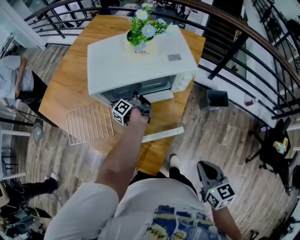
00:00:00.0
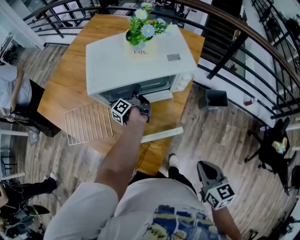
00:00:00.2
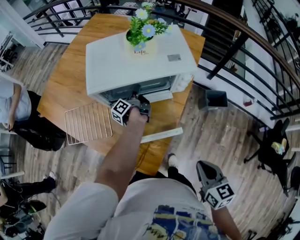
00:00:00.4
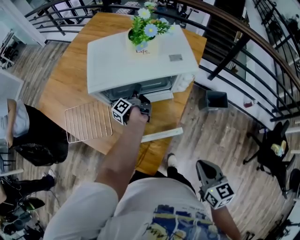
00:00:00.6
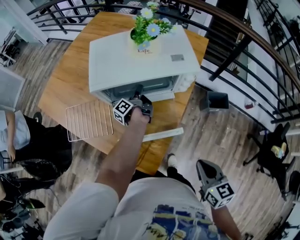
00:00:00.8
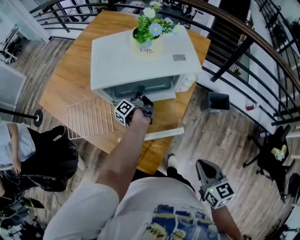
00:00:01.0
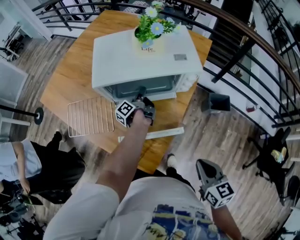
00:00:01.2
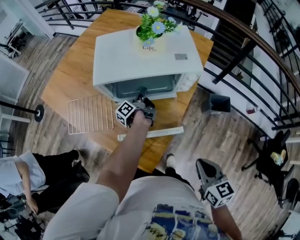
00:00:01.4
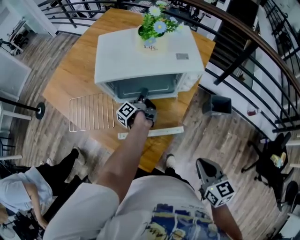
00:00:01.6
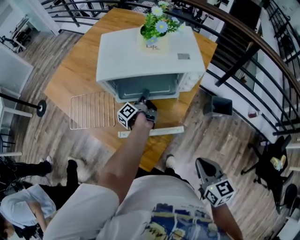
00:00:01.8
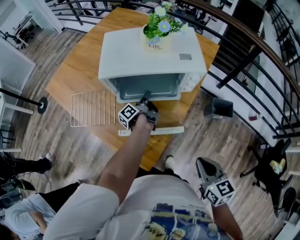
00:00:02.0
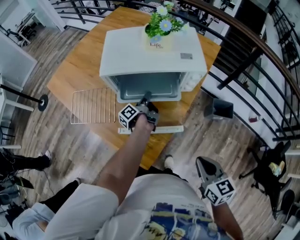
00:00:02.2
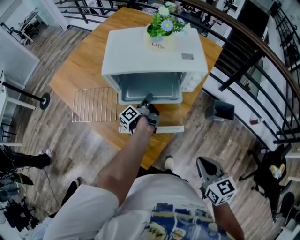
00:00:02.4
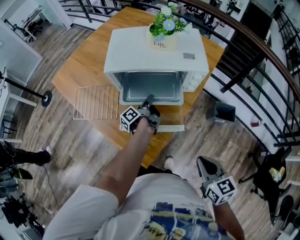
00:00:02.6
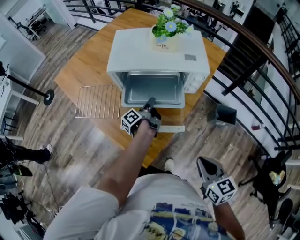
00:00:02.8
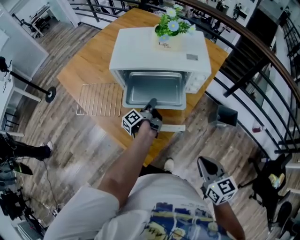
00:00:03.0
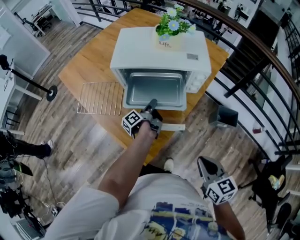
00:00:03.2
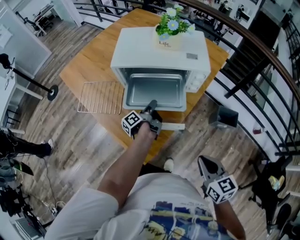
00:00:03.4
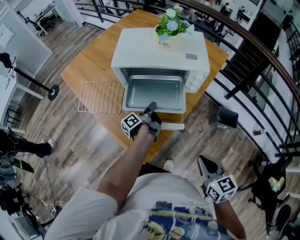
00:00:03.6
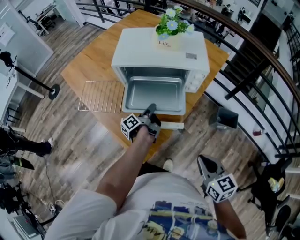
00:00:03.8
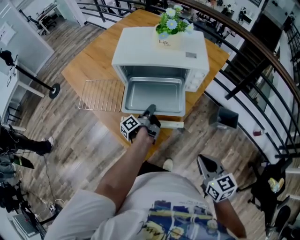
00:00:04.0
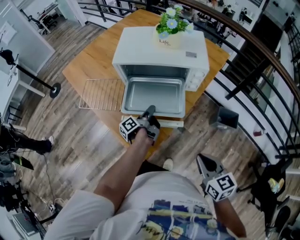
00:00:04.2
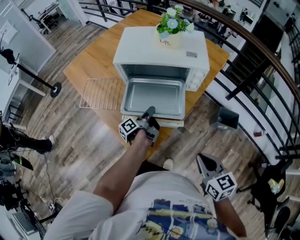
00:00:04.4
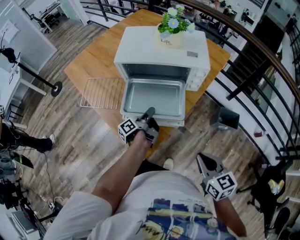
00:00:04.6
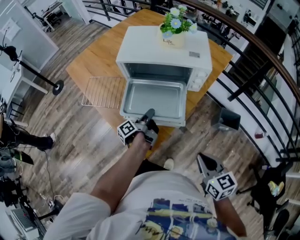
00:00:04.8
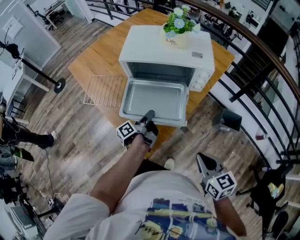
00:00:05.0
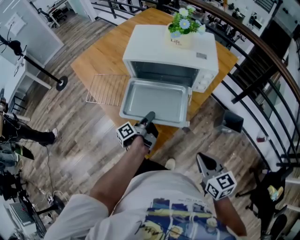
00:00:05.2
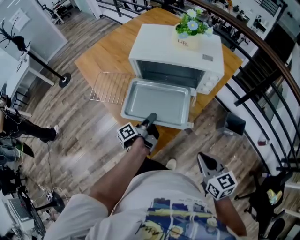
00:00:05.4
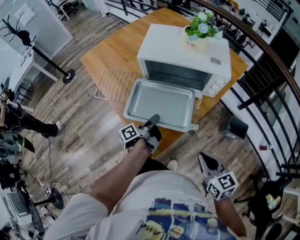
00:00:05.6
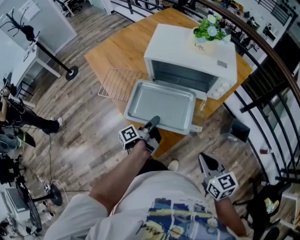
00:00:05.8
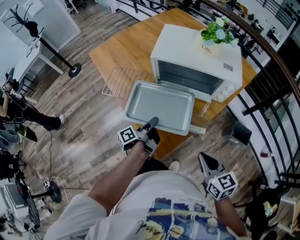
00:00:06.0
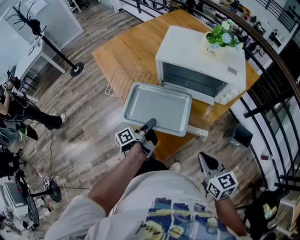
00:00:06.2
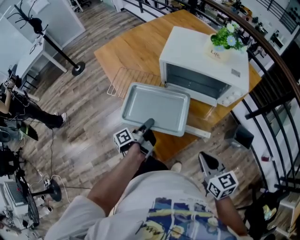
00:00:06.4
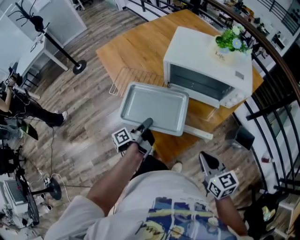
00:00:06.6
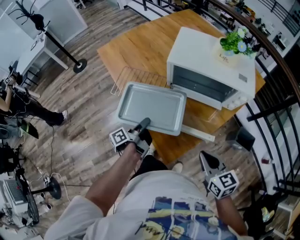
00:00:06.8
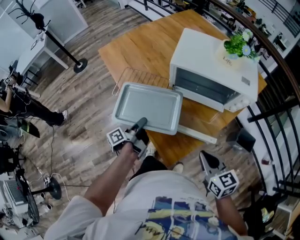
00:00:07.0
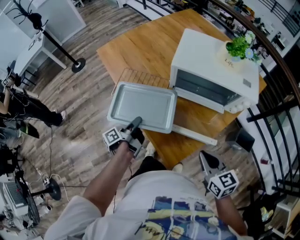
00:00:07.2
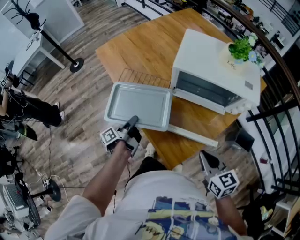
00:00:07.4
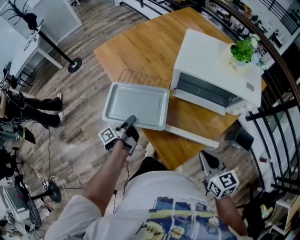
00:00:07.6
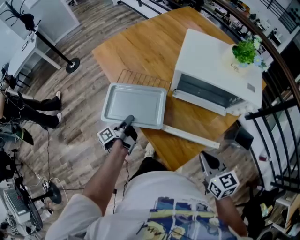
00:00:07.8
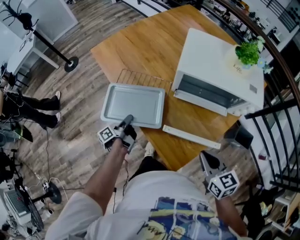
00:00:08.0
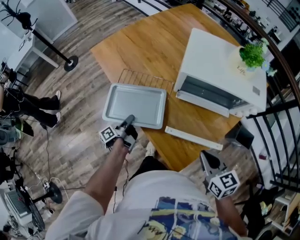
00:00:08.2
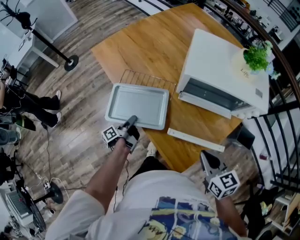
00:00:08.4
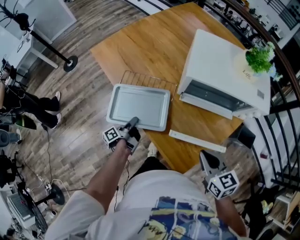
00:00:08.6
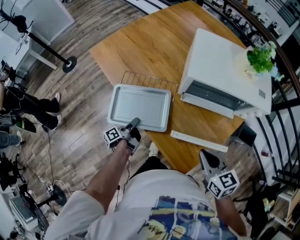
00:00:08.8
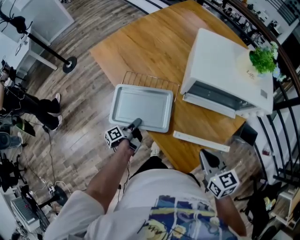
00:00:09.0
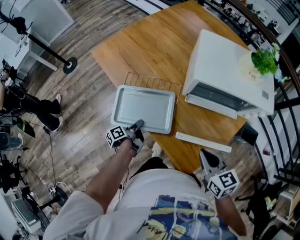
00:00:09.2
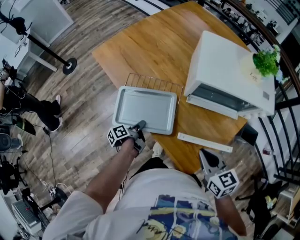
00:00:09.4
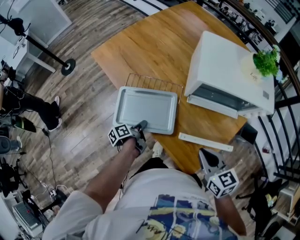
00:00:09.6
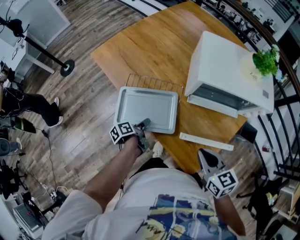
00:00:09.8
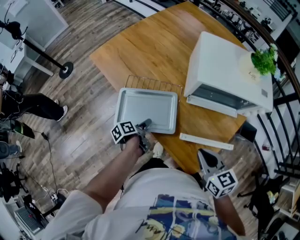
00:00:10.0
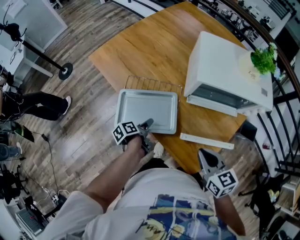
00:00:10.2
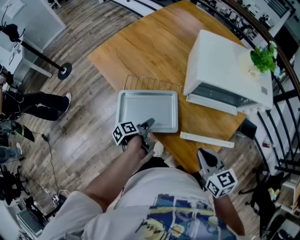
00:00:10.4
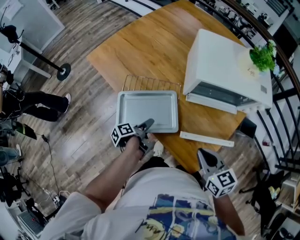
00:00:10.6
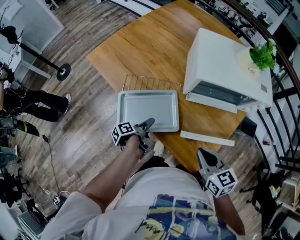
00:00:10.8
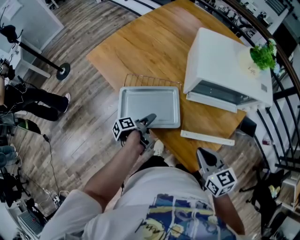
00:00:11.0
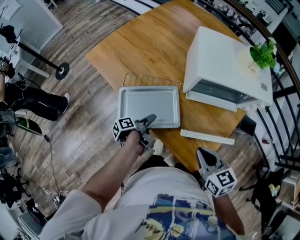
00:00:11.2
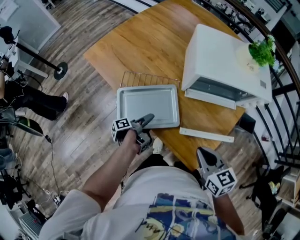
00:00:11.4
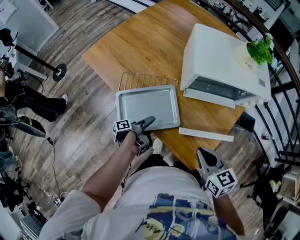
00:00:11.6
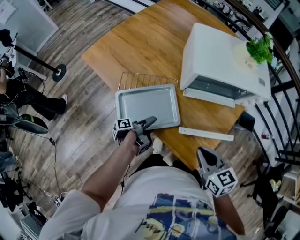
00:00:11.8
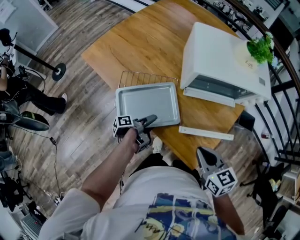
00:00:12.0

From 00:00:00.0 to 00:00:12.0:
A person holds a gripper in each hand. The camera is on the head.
From 00:00:04.4 to 00:00:06.0: The right gripper moves some 10 cm.
From 00:00:06.0 to 00:00:07.6: The right gripper ends up roughly 15 cm from where it was.
From 00:00:07.6 to 00:00:09.0: The right gripper shifts by about 10 cm.
From 00:00:09.0 to 00:00:10.4: The right gripper ends up some 5 cm from where it was.

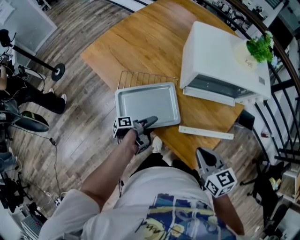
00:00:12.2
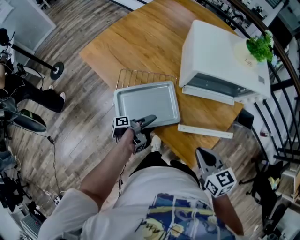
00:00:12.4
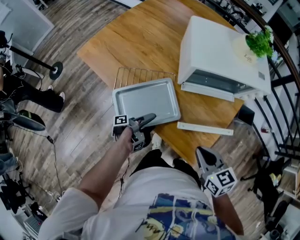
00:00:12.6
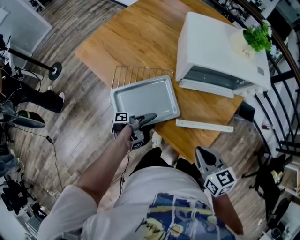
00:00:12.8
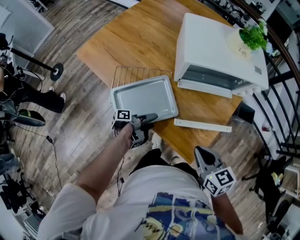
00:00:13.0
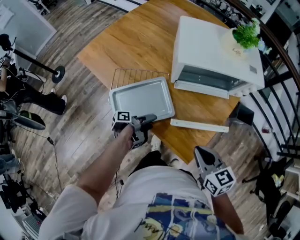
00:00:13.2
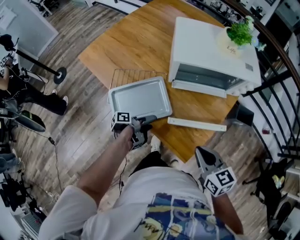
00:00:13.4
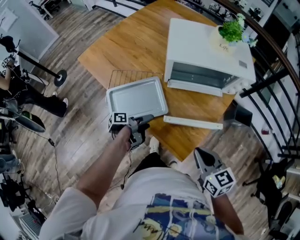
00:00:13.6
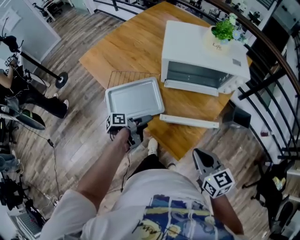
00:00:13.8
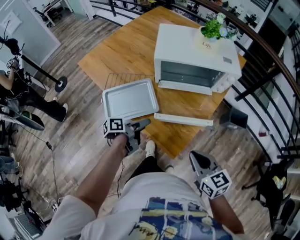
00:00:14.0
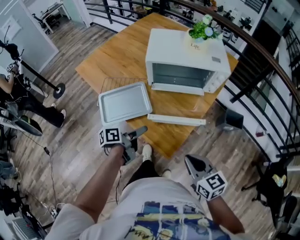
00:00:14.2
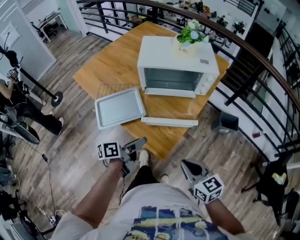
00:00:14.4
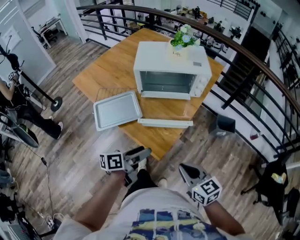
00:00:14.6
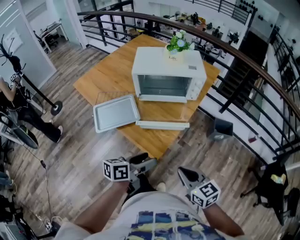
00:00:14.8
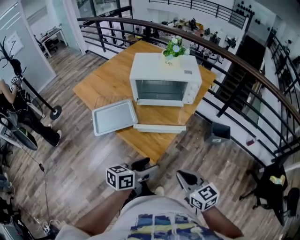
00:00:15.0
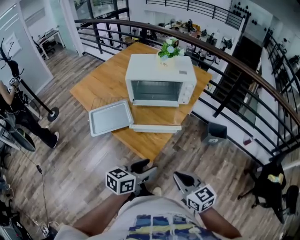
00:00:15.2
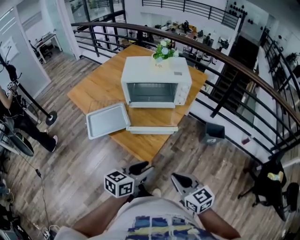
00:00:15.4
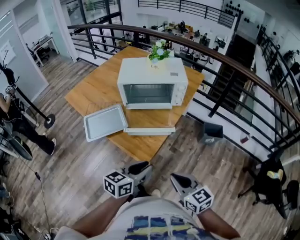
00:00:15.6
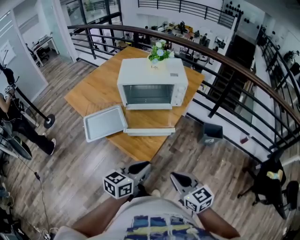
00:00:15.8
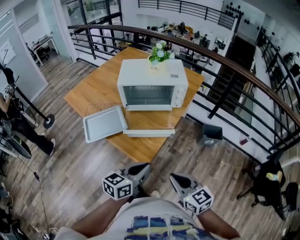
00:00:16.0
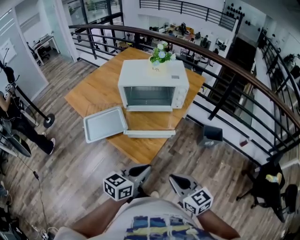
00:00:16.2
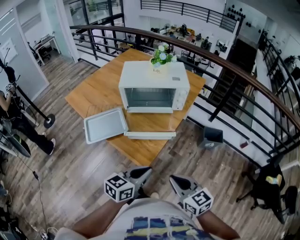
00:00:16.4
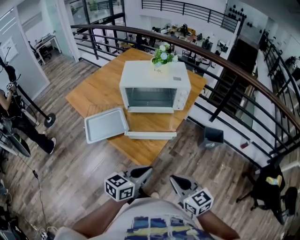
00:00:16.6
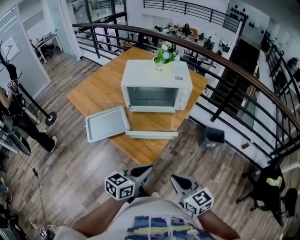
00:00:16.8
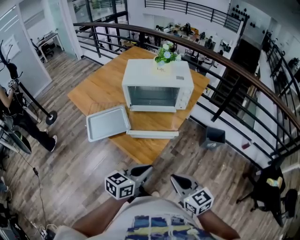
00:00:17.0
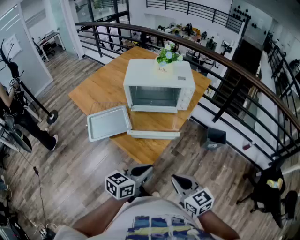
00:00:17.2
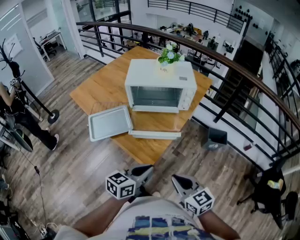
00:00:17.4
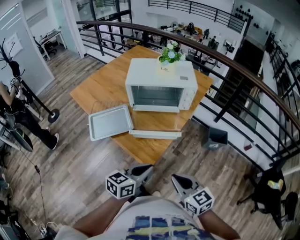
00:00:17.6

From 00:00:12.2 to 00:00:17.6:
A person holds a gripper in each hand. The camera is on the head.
From 00:00:12.2 to 00:00:13.6: The right gripper changes place by roughly 10 cm.
From 00:00:13.6 to 00:00:15.0: The right gripper shifts by approximately 20 cm.

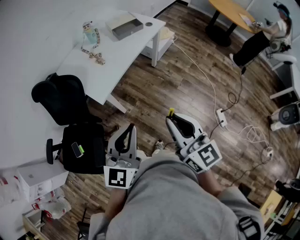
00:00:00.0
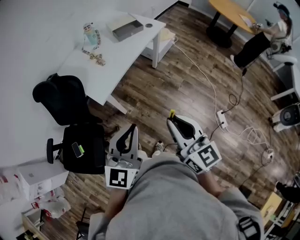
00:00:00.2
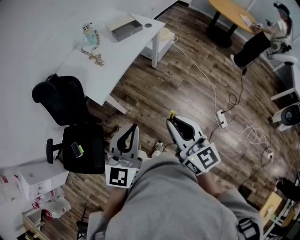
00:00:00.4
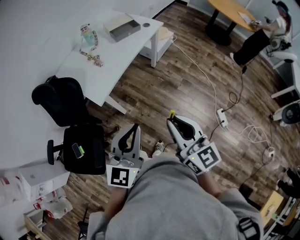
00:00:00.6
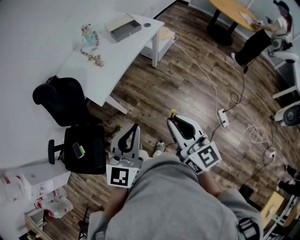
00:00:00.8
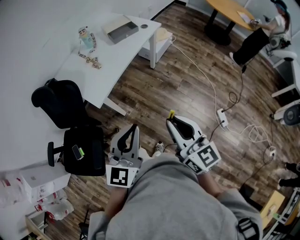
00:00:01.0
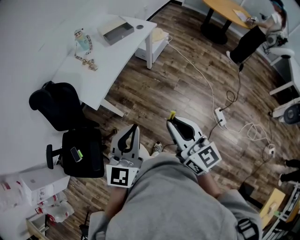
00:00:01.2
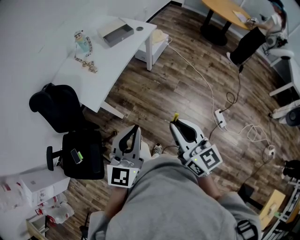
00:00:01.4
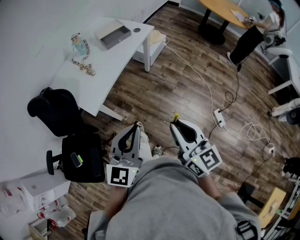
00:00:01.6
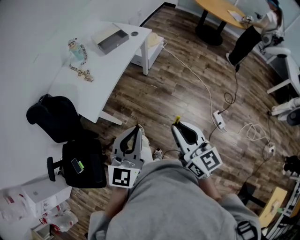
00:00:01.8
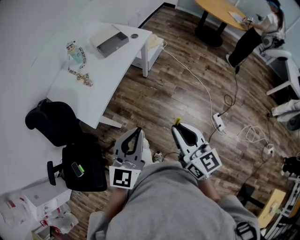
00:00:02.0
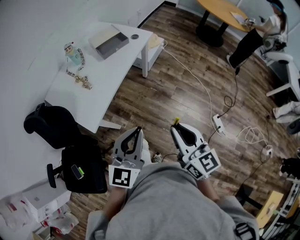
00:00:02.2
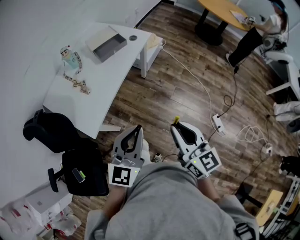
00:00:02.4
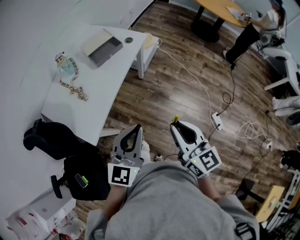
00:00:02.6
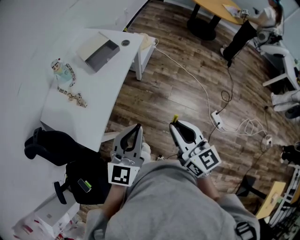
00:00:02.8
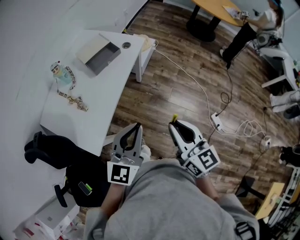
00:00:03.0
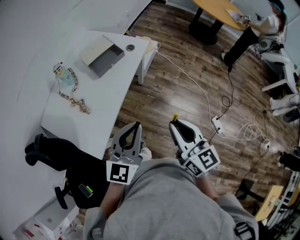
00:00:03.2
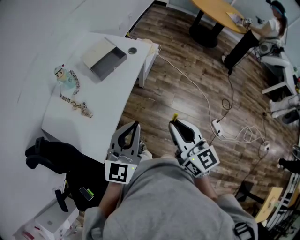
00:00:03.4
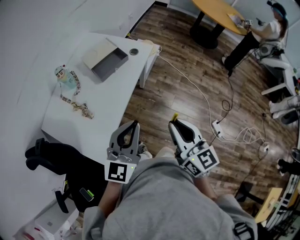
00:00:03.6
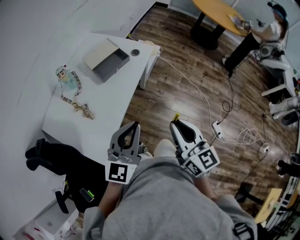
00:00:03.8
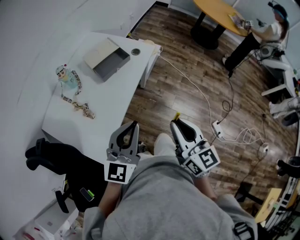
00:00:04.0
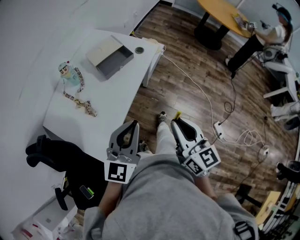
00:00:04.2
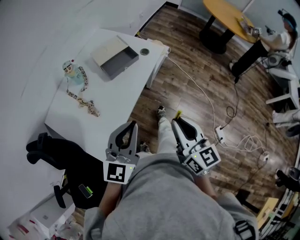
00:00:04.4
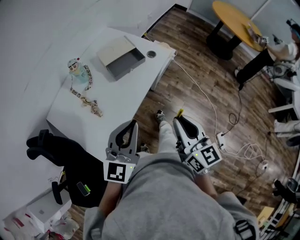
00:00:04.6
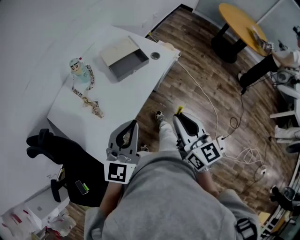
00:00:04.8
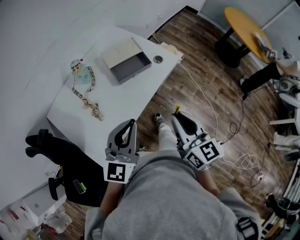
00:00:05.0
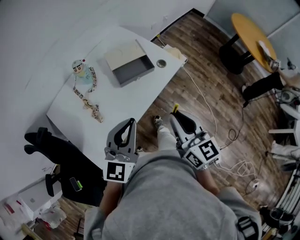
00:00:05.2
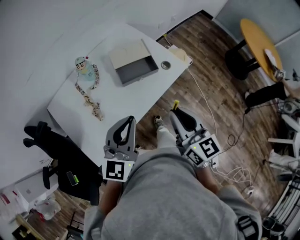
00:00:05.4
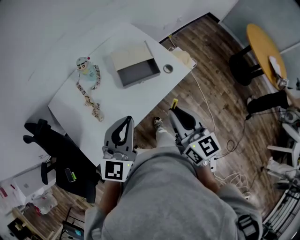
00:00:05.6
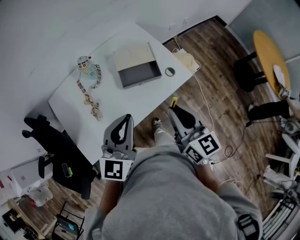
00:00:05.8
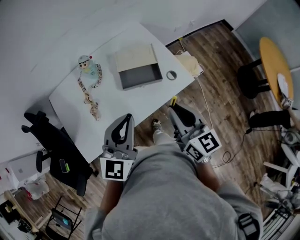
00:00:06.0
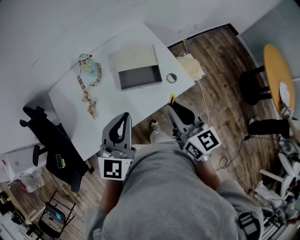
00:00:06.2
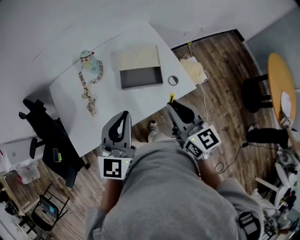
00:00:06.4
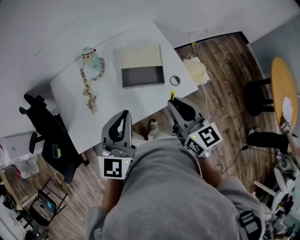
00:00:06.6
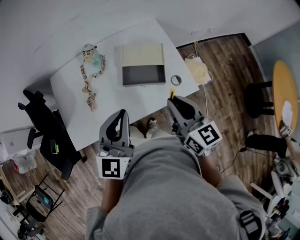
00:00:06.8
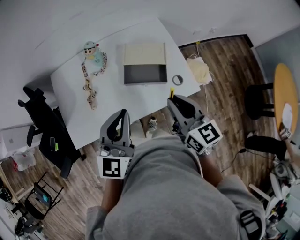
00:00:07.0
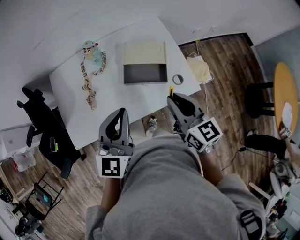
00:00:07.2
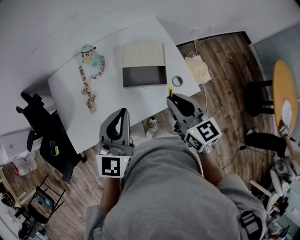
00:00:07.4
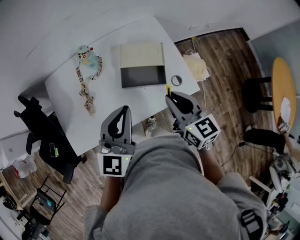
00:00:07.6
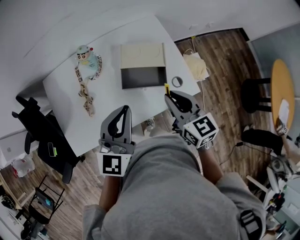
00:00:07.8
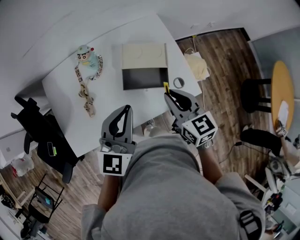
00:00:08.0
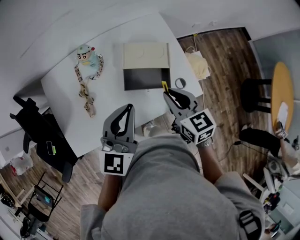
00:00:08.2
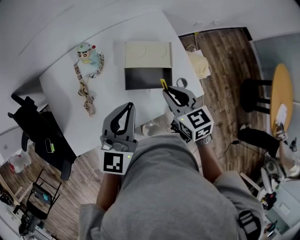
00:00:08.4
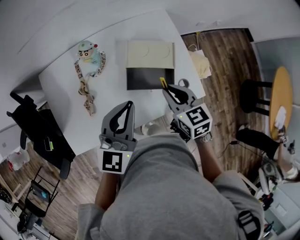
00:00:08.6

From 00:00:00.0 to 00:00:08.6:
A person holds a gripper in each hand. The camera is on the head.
From 00:00:00.0 to 00:00:01.4: Both grippers move to the right, roughly 5 cm.
From 00:00:01.4 to 00:00:02.8: Both grippers move forward, approximately 25 cm.
From 00:00:02.8 to 00:00:04.4: The two grippers go some 15 cm forward and to the left.
From 00:00:04.4 to 00:00:05.8: The right gripper moves roughly 25 cm, and swivels about 30 degrees. The left gripper changes place by roughly 20 cm, and swivels some 30 degrees.
From 00:00:05.8 to 00:00:07.2: The right gripper is displaced forward by roughly 10 cm, and changes its angle by roughly 20 degrees. Meanwhile the left gripper shifts by approximately 5 cm.
From 00:00:07.2 to 00:00:08.6: The right gripper shifts approximately 15 cm forward and downward, and turns by roughly 20 degrees, while the left gripper travels forward by about 10 cm.
